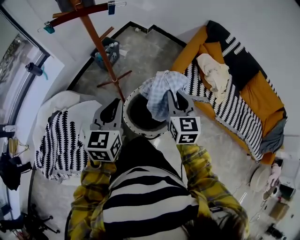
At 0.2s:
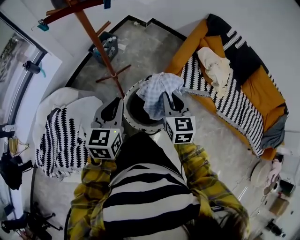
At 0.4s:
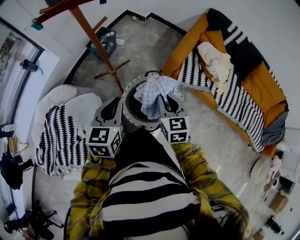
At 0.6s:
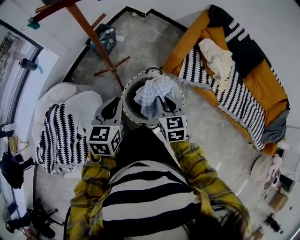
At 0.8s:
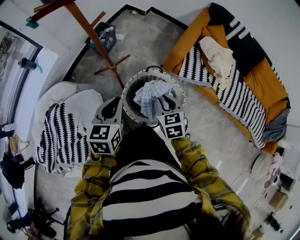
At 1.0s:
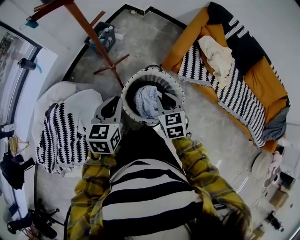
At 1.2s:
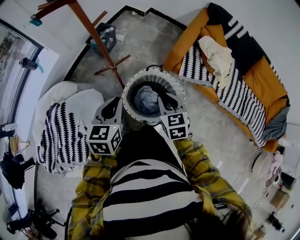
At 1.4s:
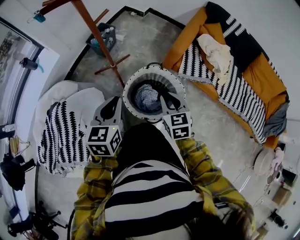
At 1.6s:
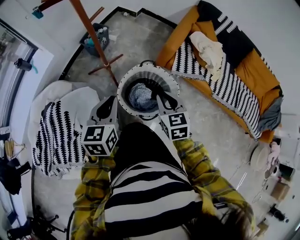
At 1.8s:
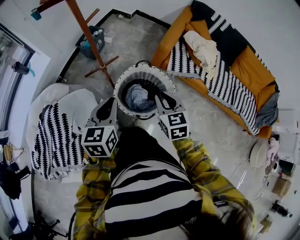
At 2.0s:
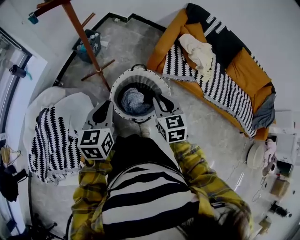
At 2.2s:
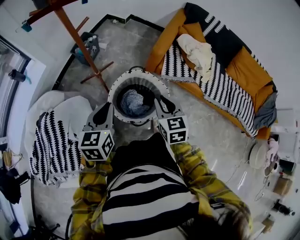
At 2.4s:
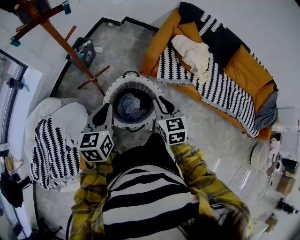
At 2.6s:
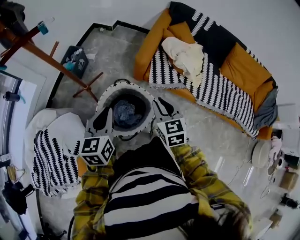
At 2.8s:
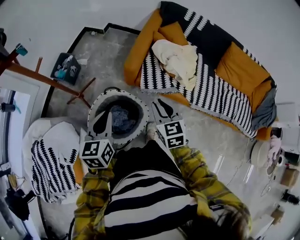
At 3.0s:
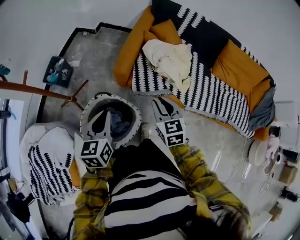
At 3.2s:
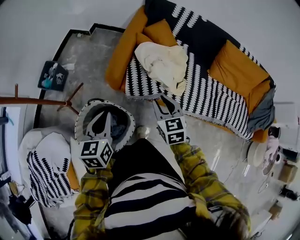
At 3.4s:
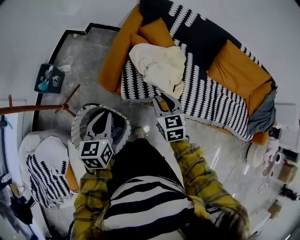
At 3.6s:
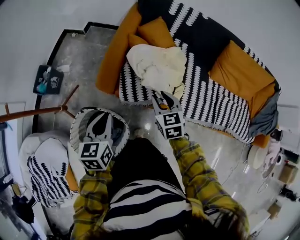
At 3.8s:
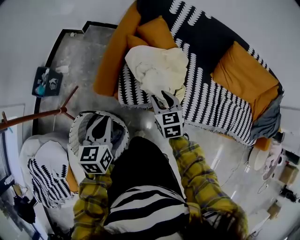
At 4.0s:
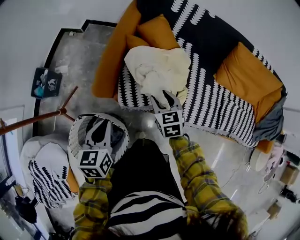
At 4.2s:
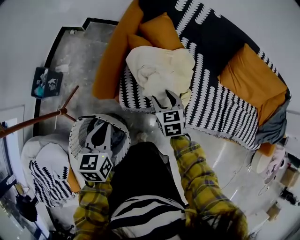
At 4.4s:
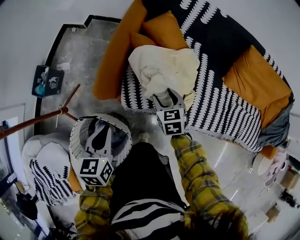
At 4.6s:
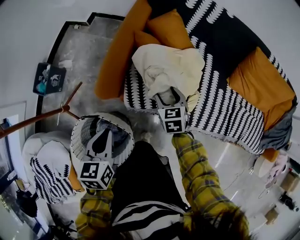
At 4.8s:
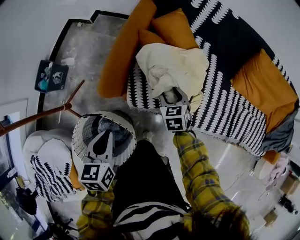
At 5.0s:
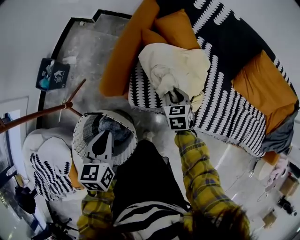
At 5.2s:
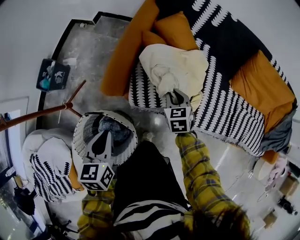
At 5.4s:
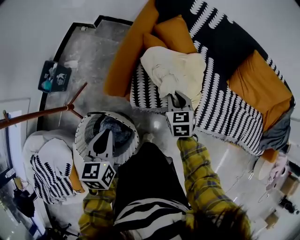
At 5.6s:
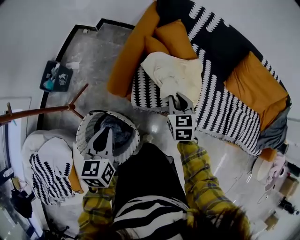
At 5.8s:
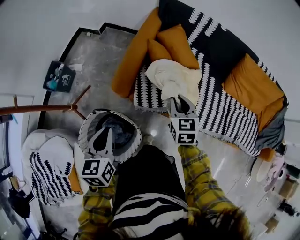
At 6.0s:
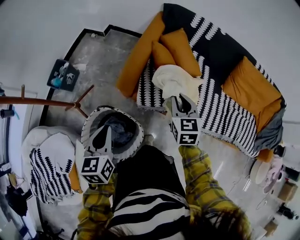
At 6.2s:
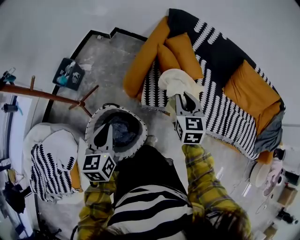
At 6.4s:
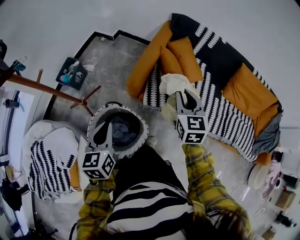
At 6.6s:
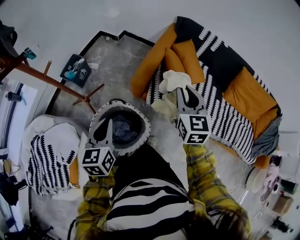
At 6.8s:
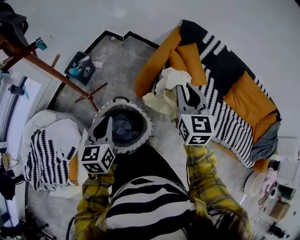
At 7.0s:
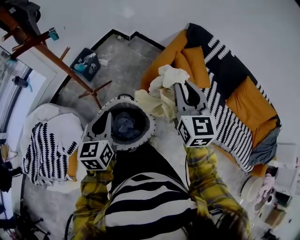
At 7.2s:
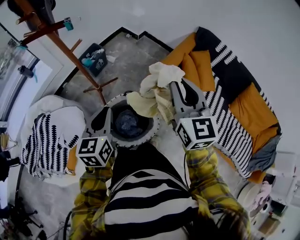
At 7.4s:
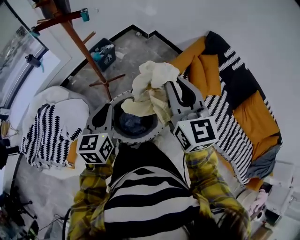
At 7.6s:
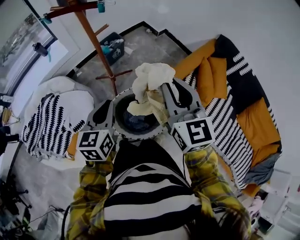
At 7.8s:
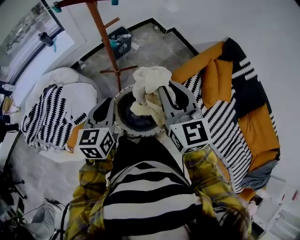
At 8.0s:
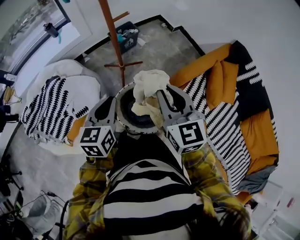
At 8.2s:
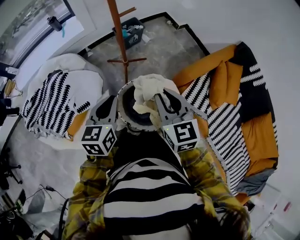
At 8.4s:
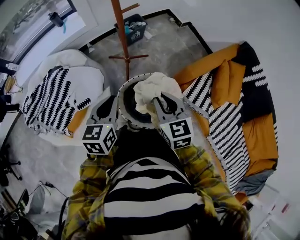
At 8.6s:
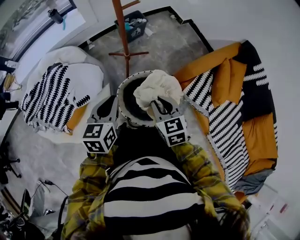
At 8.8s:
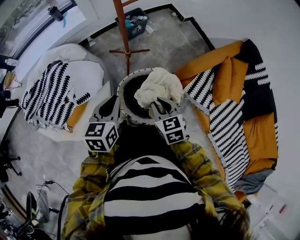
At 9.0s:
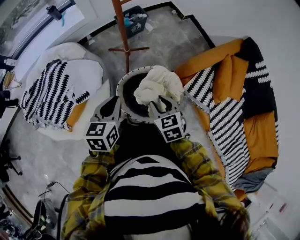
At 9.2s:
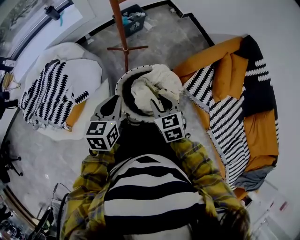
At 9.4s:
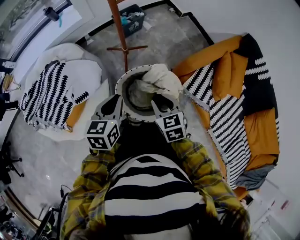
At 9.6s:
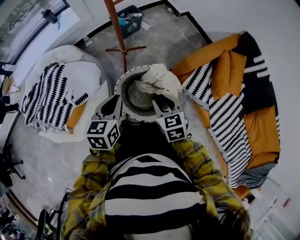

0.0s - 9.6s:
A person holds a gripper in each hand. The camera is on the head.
0.0s - 1.6s: The left gripper shifts roughly 10 cm backward and downward; the right gripper shifts about 15 cm backward and downward.
1.6s - 3.2s: The two grippers go some 35 cm to the right and forward.
3.2s - 4.8s: The right gripper travels downward and forward by about 25 cm, and opens up, while the left gripper heads downward and forward, covering some 10 cm.
4.8s - 6.4s: The right gripper shifts about 30 cm upward, changes its angle by approximately 30 degrees, and closes its fingers, while the left gripper heads upward, to the left and backward, covering approximately 20 cm.
6.4s - 8.0s: The right gripper moves some 35 cm, and turns by approximately 40 degrees, while the left gripper moves about 20 cm, and turns by about 20 degrees.
8.0s - 9.6s: The left gripper is displaced downward by about 5 cm; the right gripper heads downward, covering roughly 20 cm, and swivels roughly 30 degrees.

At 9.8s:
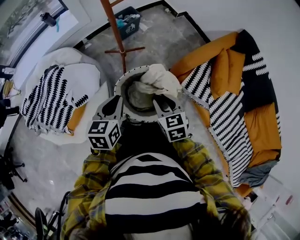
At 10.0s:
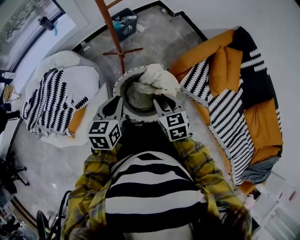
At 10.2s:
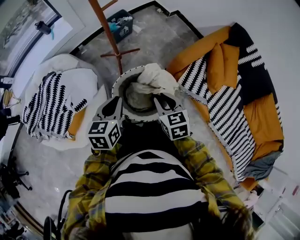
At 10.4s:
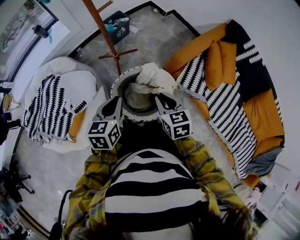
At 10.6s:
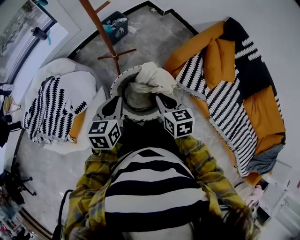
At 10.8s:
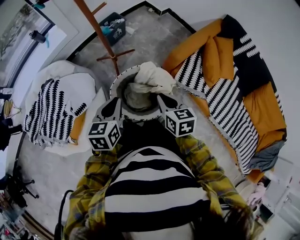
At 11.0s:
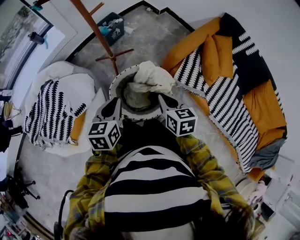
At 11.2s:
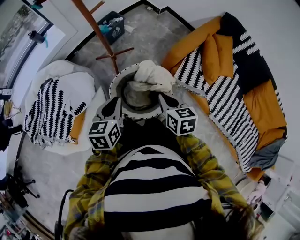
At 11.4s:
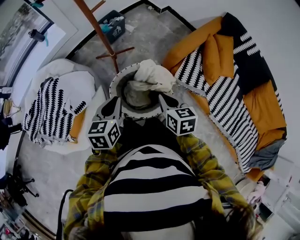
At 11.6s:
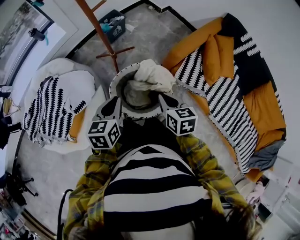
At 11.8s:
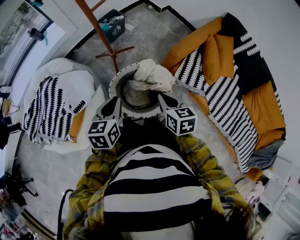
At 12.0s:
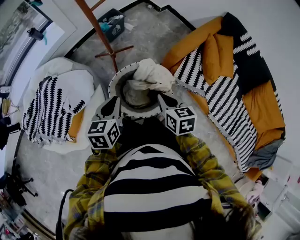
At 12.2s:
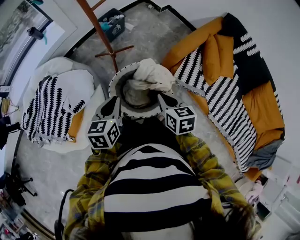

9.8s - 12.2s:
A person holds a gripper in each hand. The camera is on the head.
9.8s - 11.0s: The right gripper ends up approximately 5 cm from where it was, changes its angle by approximately 20 degrees, and closes its fingers.
11.0s - 12.2s: Both grippers stay about where they are.

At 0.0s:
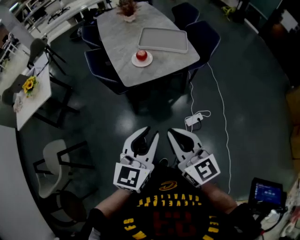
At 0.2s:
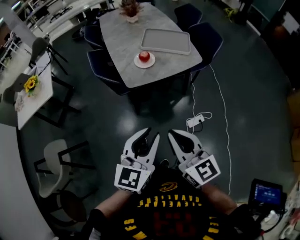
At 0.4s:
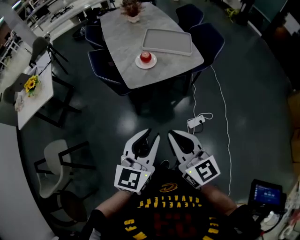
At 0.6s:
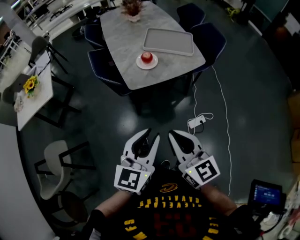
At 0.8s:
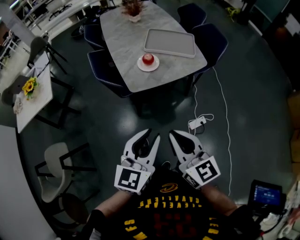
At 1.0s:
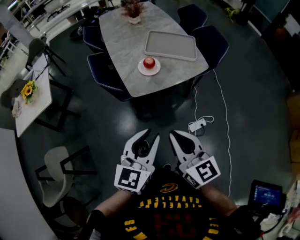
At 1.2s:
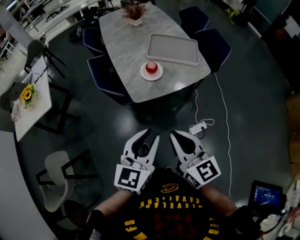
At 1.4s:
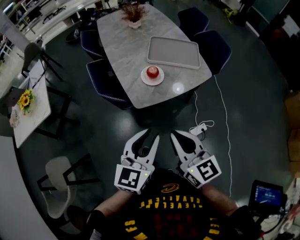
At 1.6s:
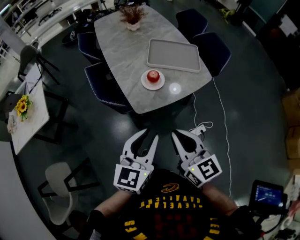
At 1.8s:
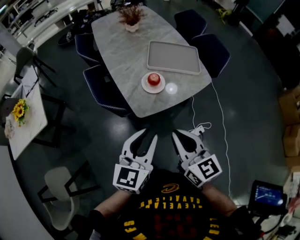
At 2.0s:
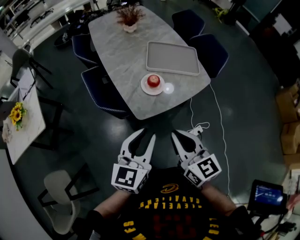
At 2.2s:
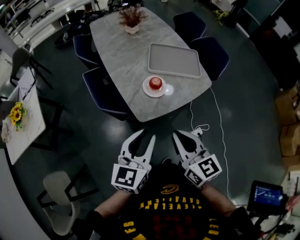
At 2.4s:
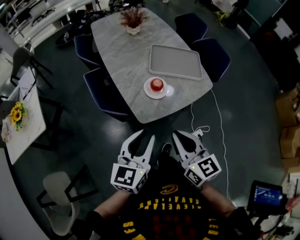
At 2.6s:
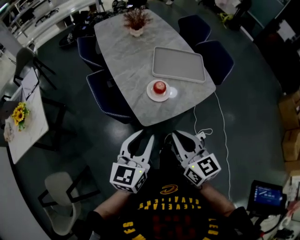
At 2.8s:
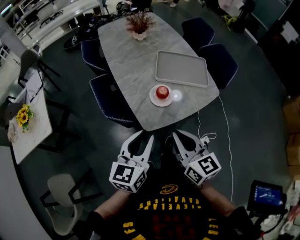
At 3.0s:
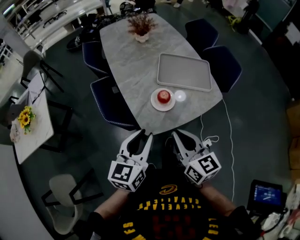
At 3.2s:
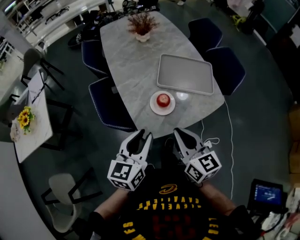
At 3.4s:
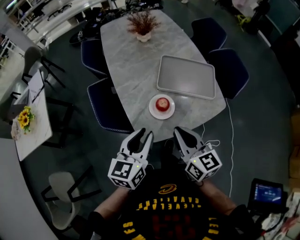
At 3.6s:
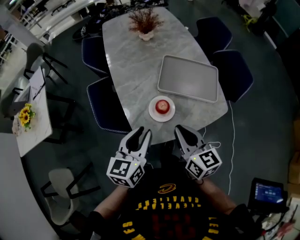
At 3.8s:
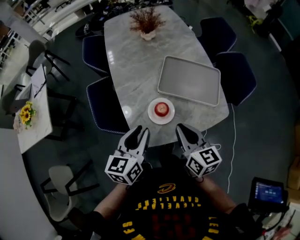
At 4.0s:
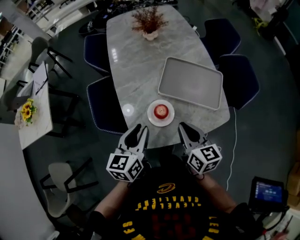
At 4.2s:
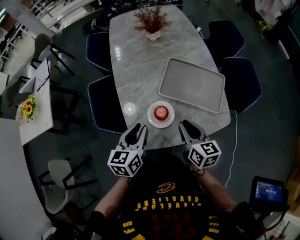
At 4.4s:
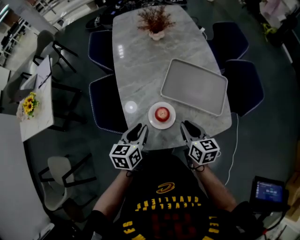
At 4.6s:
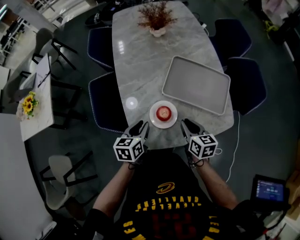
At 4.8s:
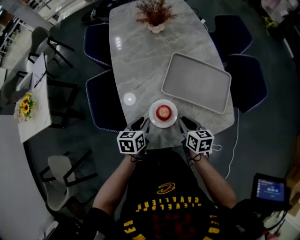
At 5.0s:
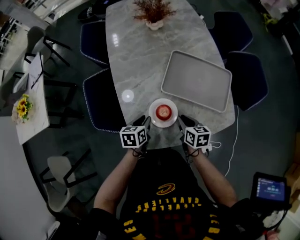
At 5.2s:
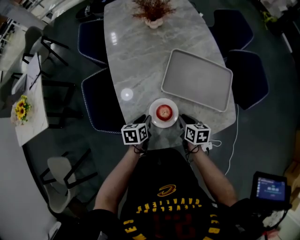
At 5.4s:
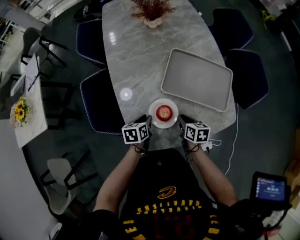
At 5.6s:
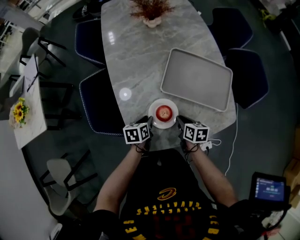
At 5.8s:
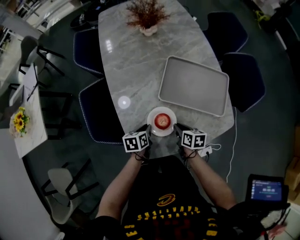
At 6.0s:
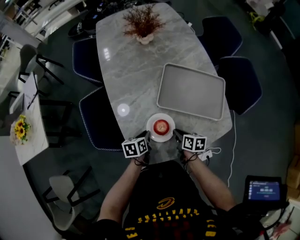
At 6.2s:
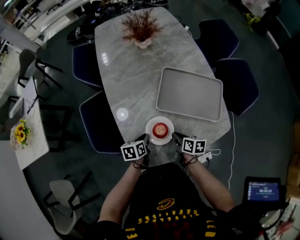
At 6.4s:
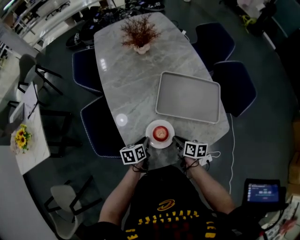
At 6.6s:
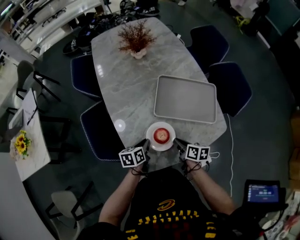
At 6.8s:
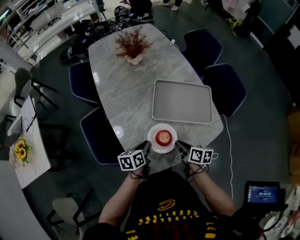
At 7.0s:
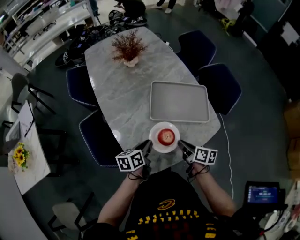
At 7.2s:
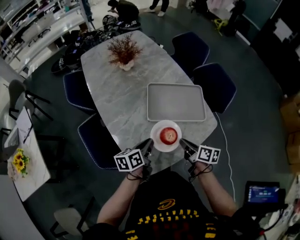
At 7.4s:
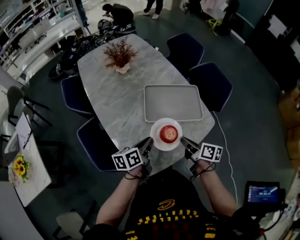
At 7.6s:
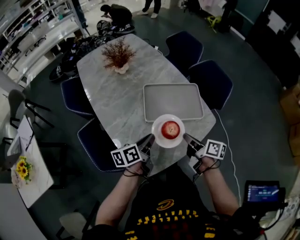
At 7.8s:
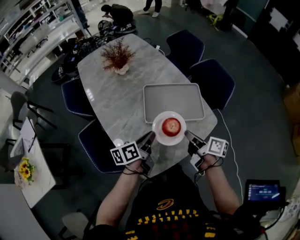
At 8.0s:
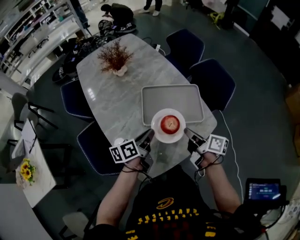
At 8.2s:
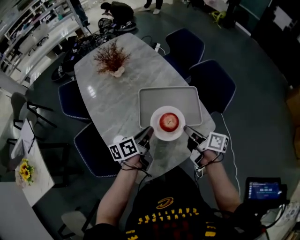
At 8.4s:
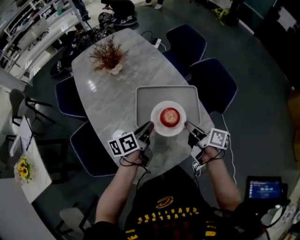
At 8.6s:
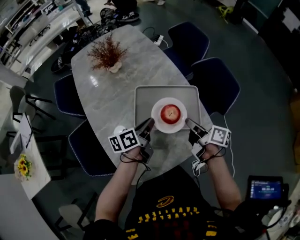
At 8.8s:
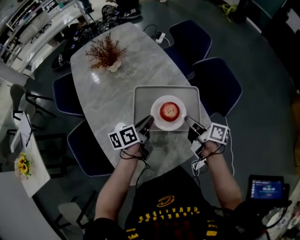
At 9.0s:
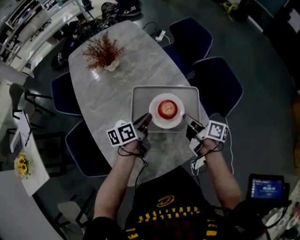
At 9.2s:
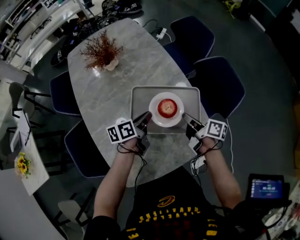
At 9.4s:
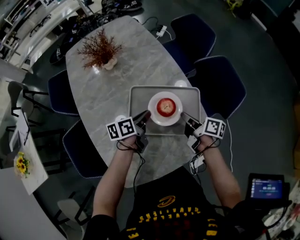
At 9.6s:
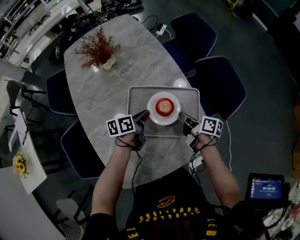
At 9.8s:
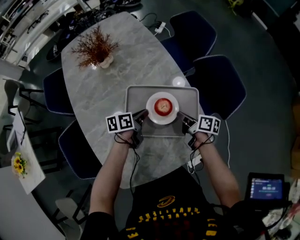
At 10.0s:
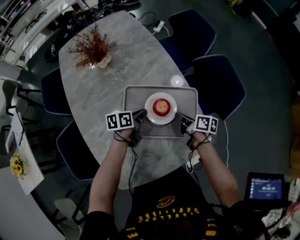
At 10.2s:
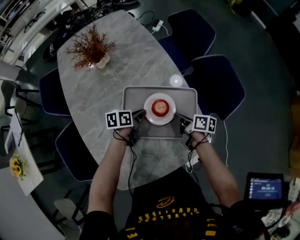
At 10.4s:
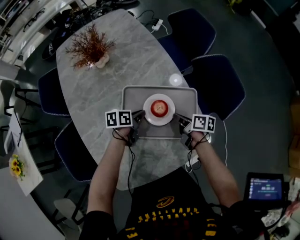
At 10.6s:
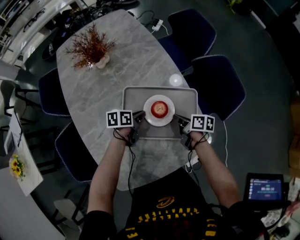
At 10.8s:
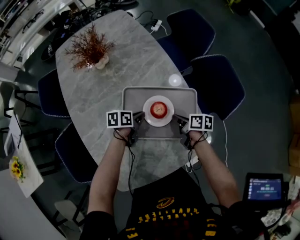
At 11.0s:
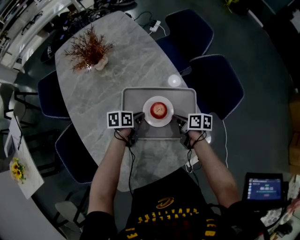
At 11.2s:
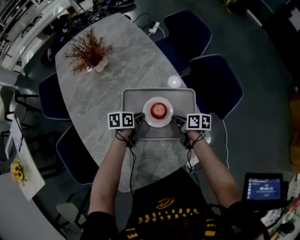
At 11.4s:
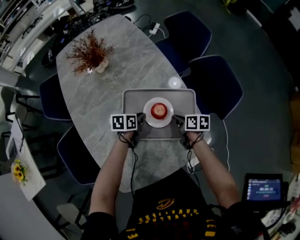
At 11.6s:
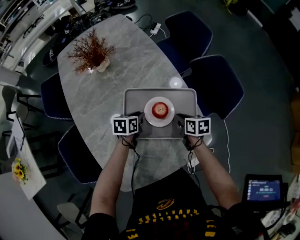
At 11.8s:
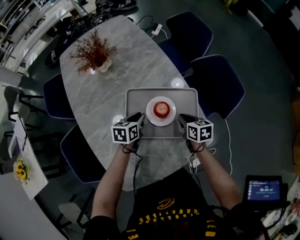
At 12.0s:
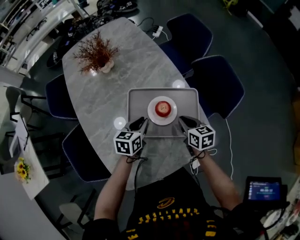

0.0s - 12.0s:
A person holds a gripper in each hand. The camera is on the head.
0.0s - 1.6s: Both grippers move forward and to the left, about 20 cm.
1.6s - 3.0s: The left gripper heads forward and to the left, covering some 15 cm. Meanwhile the right gripper moves forward, some 10 cm.
3.0s - 4.4s: The right gripper moves forward, downward and to the right, approximately 30 cm. Meanwhile the left gripper is displaced forward and downward by some 20 cm, and swivels about 30 degrees.
4.4s - 6.0s: The two grippers go some 20 cm downward. The left gripper turns by roughly 20 degrees. The right gripper rotates some 30 degrees.
6.0s - 7.6s: Both grippers move upward, roughly 20 cm. The left gripper tilts its fingers roughly 30 degrees upward. Meanwhile the right gripper changes its angle by about 40 degrees.
7.6s - 9.0s: Both grippers travel together forward and to the right, roughly 20 cm.
9.0s - 10.4s: The grippers both shift downward and forward by about 15 cm. The left gripper turns by some 20 degrees.
10.4s - 12.0s: The left gripper moves upward, some 5 cm, and changes its angle by approximately 30 degrees; the right gripper changes its angle by some 40 degrees.
